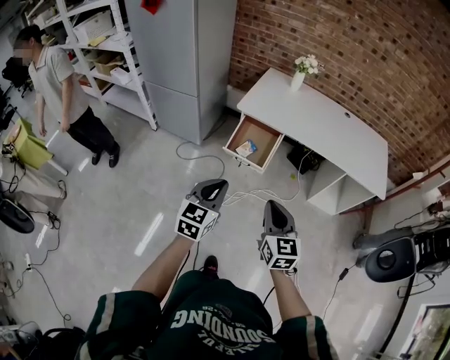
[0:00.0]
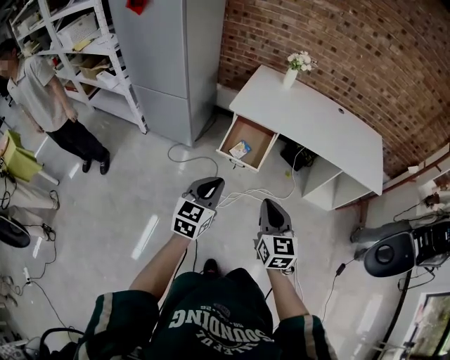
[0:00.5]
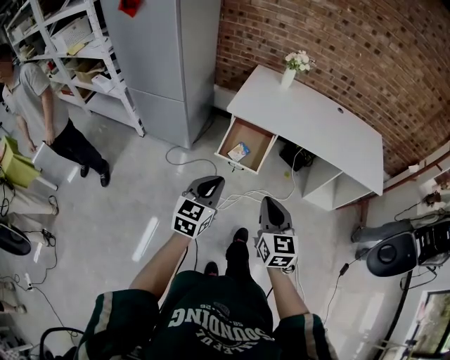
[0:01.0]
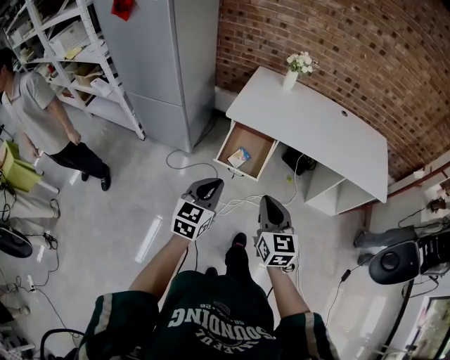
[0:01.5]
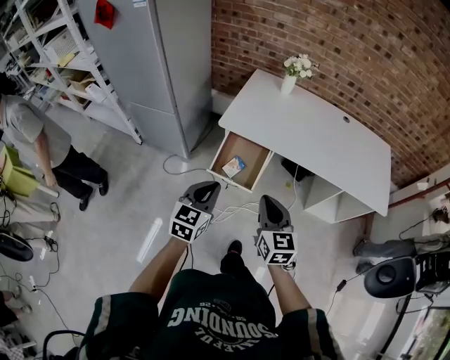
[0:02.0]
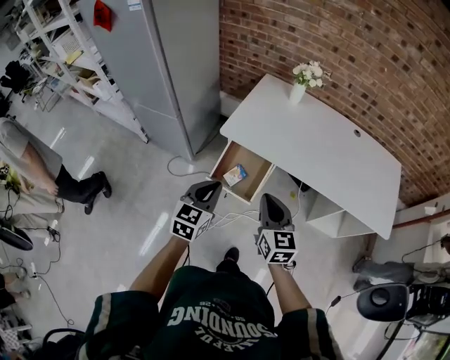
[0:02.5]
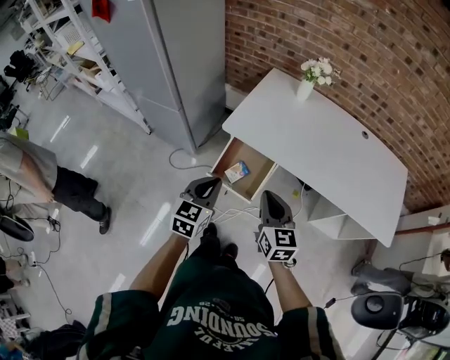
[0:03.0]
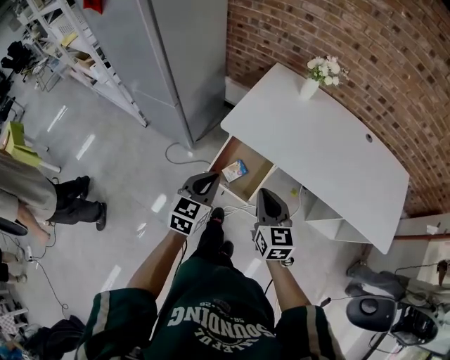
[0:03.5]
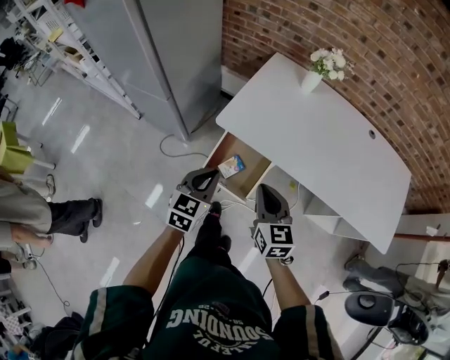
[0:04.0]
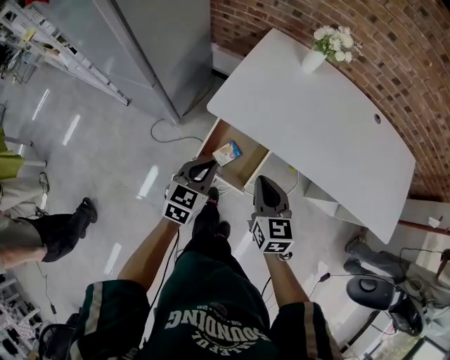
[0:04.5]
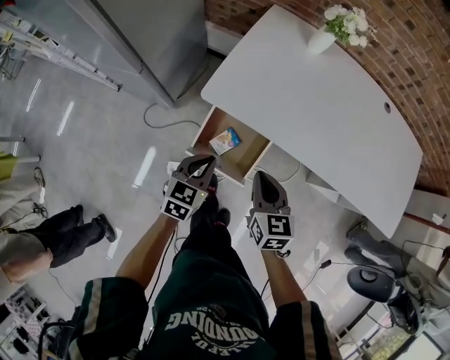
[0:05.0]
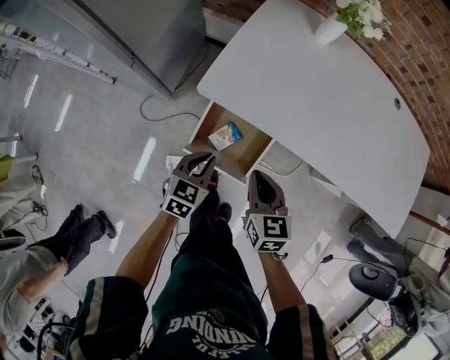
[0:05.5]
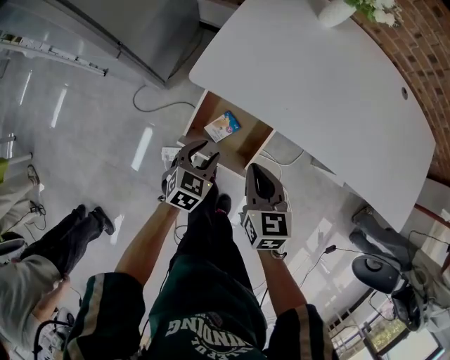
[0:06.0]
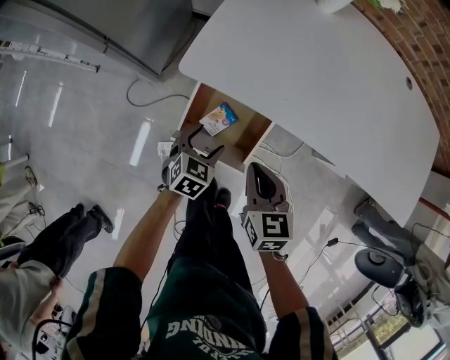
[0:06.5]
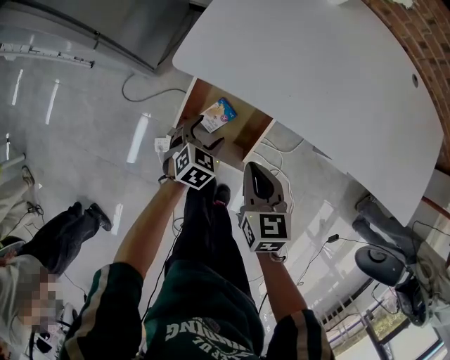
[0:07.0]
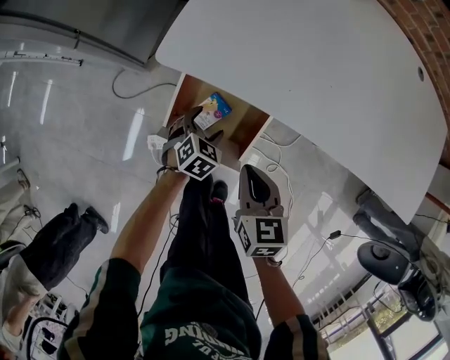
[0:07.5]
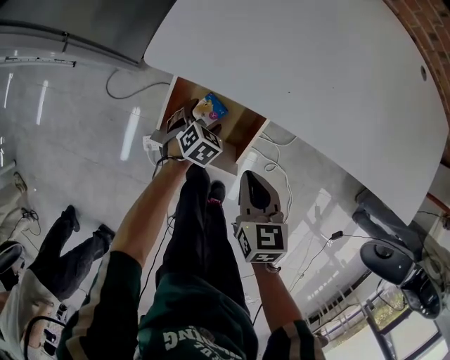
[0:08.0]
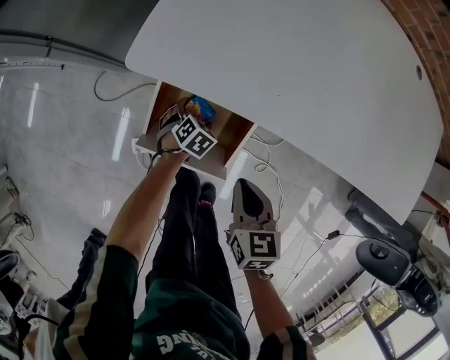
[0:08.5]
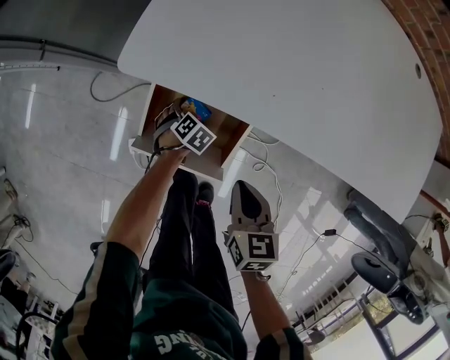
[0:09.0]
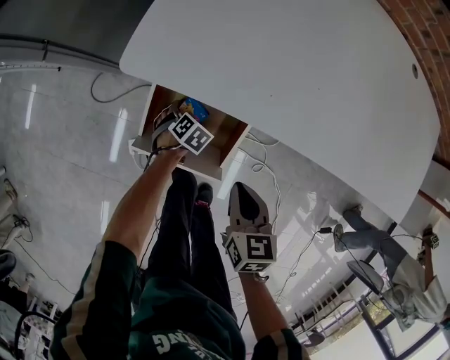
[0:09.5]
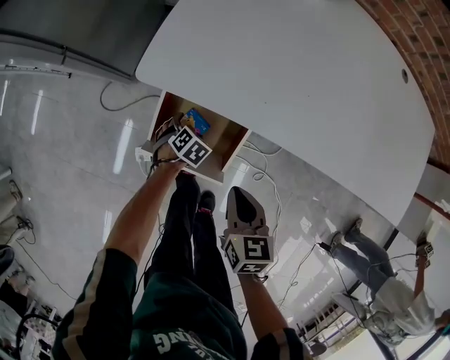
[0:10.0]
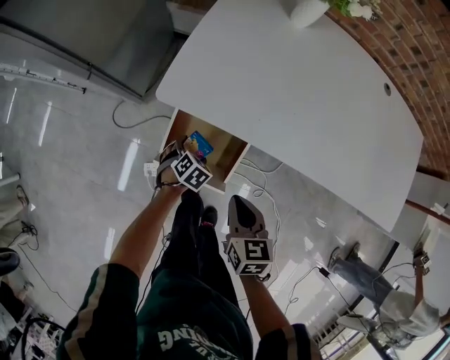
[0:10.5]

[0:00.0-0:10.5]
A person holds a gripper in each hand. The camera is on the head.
0:00.0 to 0:02.0: Both grippers move forward, roughly 20 cm.
0:02.0 to 0:04.0: The right gripper heads forward, covering about 20 cm. Meanwhile the left gripper shifts about 20 cm forward and downward.
0:04.0 to 0:06.5: The grippers both shift downward by approximately 25 cm. The left gripper turns by about 30 degrees, and opens.
0:06.5 to 0:08.5: The left gripper heads downward, covering about 20 cm, and rotates approximately 20 degrees. The right gripper goes some 10 cm downward.
0:08.5 to 0:10.5: Both grippers travel together upward, approximately 10 cm.

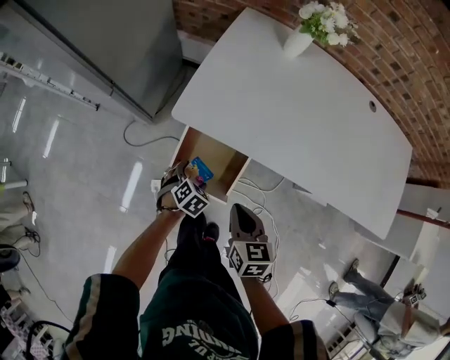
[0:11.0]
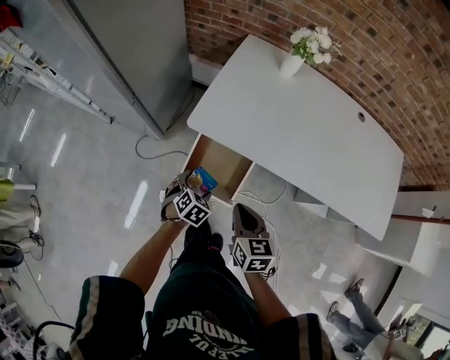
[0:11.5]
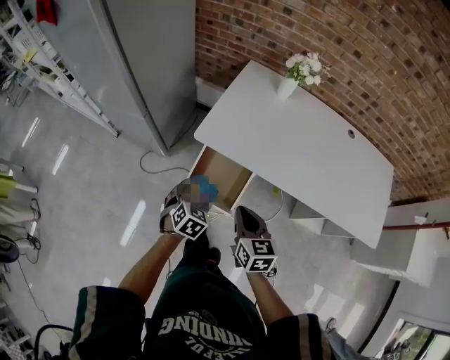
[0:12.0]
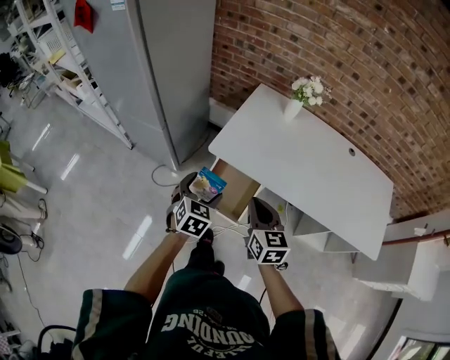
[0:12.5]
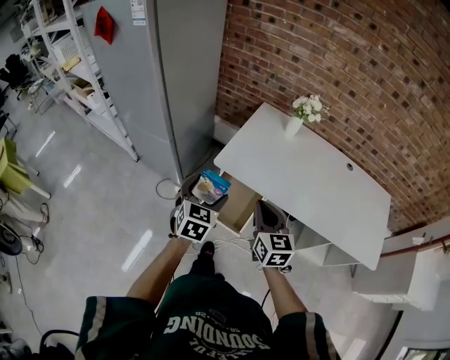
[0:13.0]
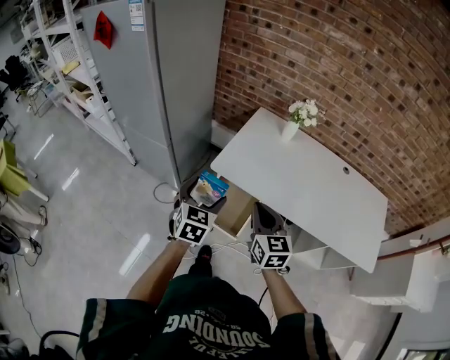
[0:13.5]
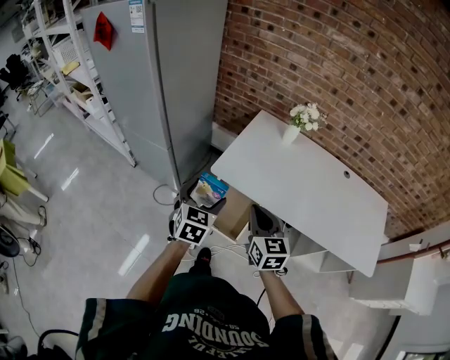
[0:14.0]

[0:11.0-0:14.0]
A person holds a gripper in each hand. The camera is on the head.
0:11.0 to 0:12.5: The left gripper heads upward, covering about 30 cm, and angles its fingers upward, by approximately 30 degrees. Meanwhile the right gripper heads upward, covering approximately 15 cm, and swivels about 20 degrees.
0:12.5 to 0:14.0: The left gripper travels upward by roughly 10 cm.

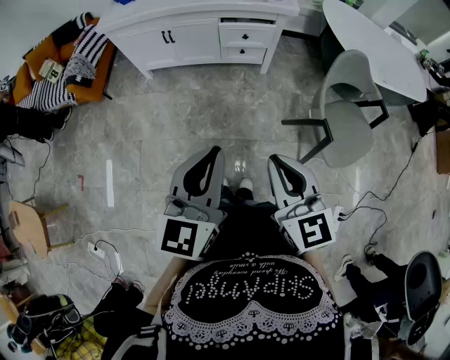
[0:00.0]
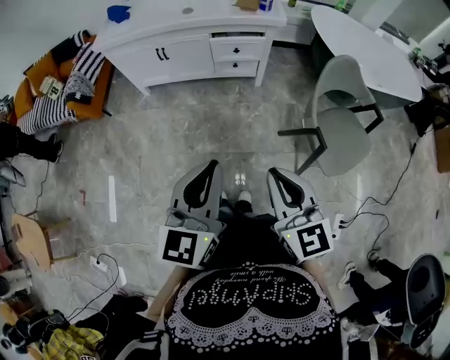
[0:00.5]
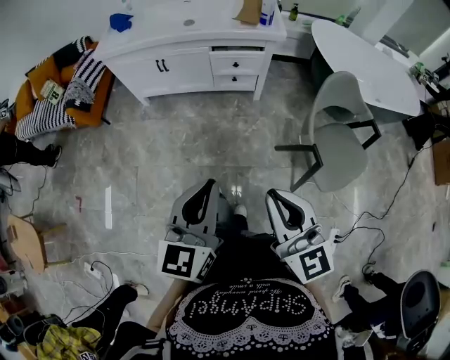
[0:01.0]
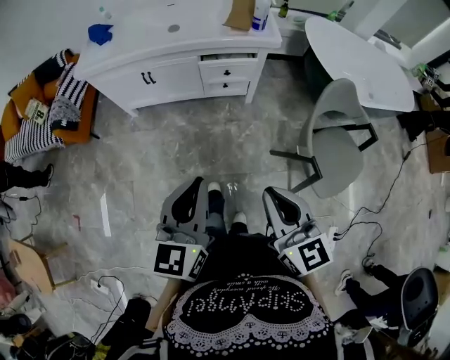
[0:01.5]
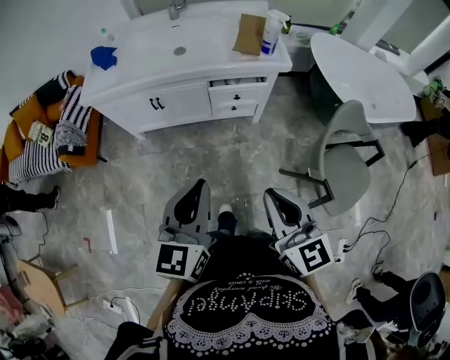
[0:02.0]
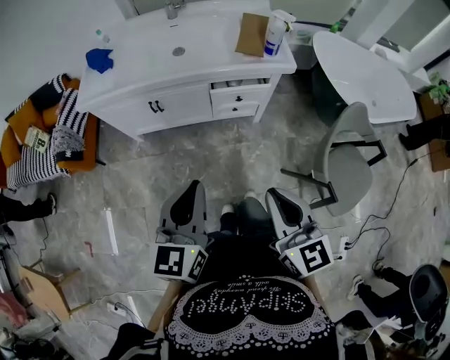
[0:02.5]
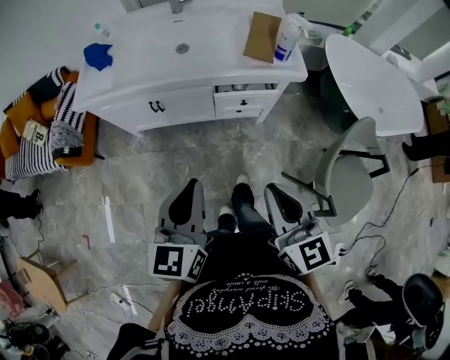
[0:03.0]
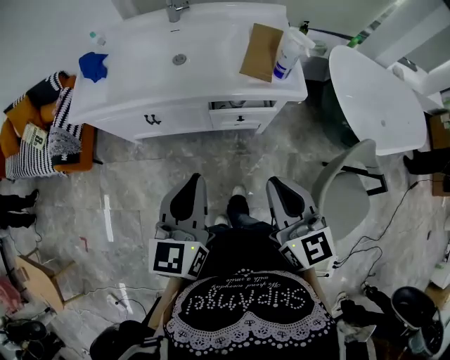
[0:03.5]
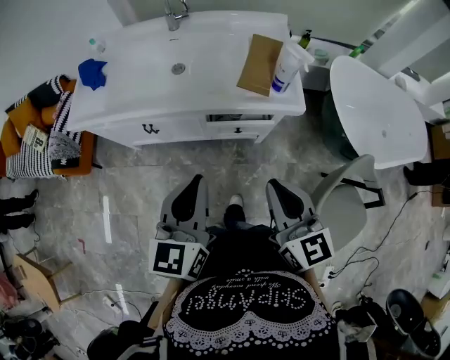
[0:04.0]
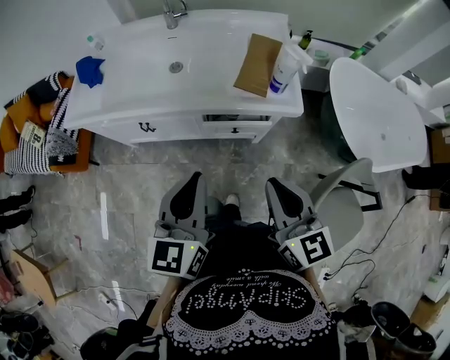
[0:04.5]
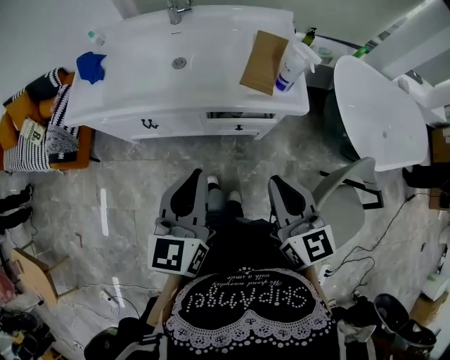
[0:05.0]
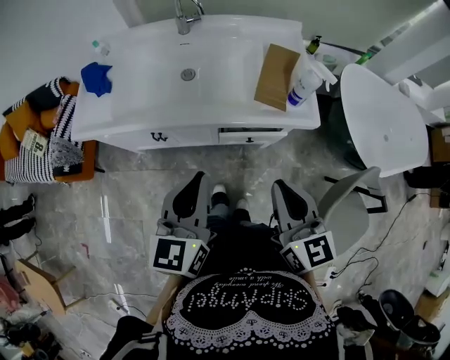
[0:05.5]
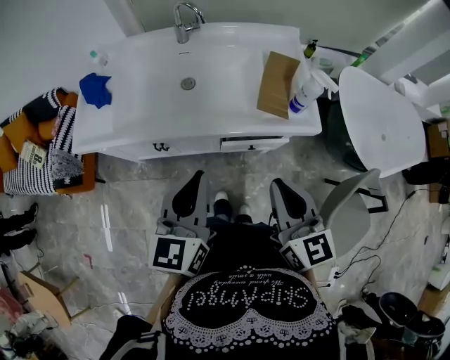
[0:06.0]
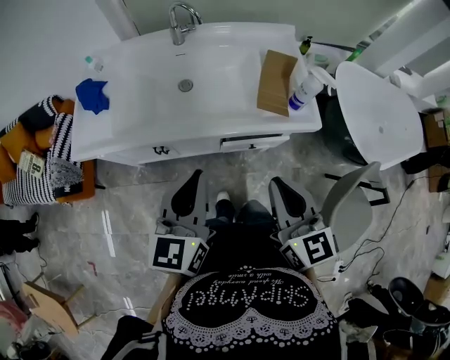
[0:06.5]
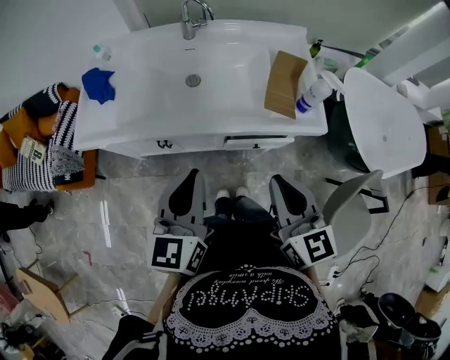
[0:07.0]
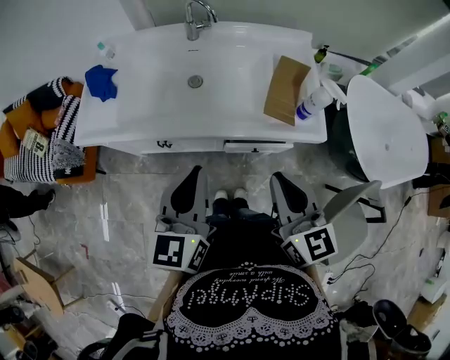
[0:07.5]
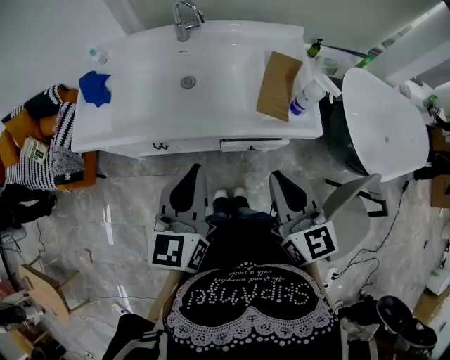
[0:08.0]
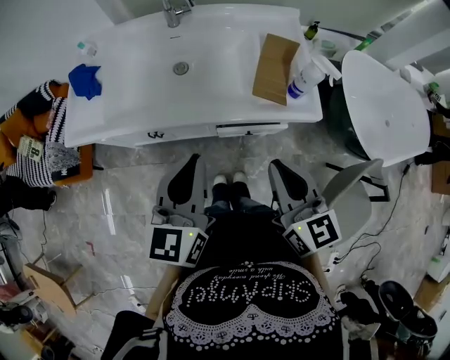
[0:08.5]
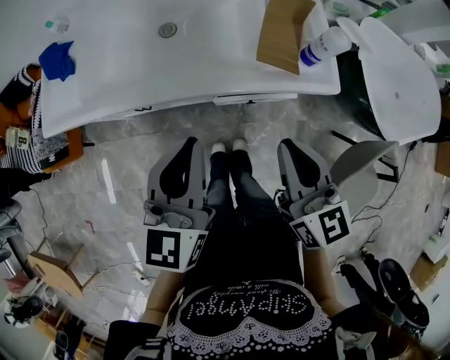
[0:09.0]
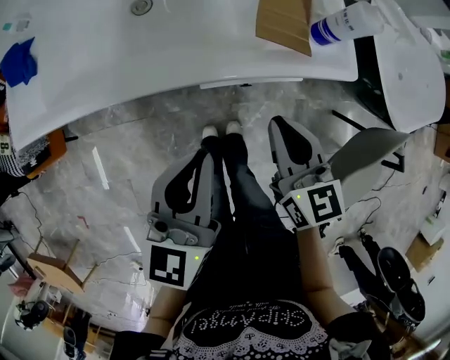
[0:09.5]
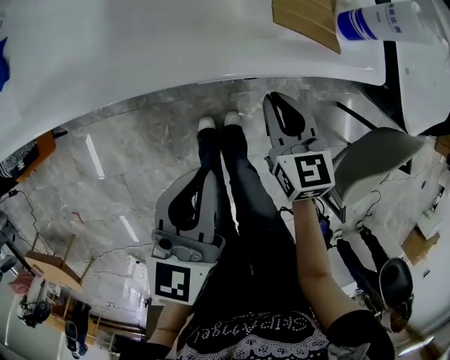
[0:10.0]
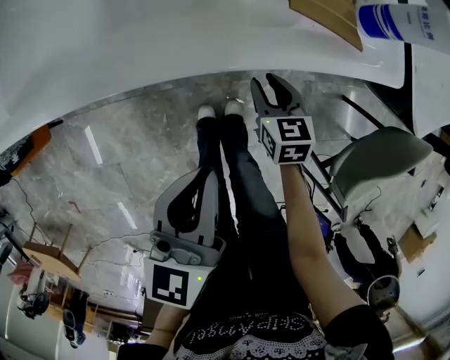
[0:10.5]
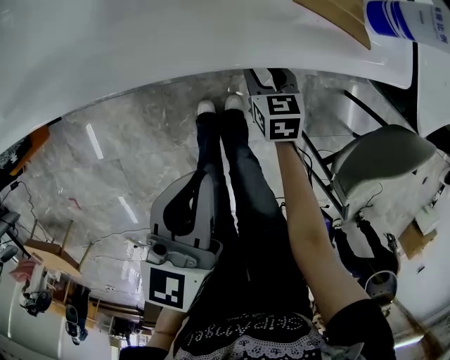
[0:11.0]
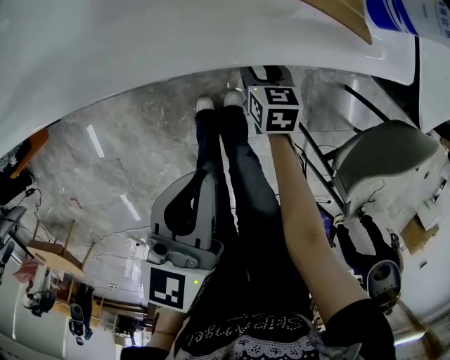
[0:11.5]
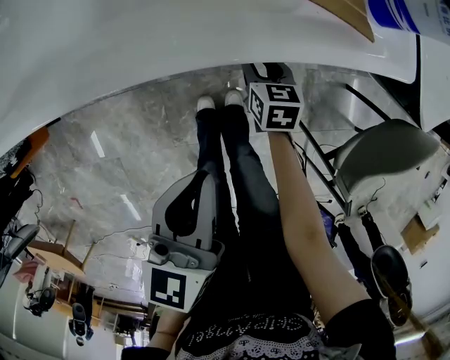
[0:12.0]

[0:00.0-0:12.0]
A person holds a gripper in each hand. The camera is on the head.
0:00.0 to 0:02.0: Both grippers travel together forward, roughly 20 cm.
0:02.0 to 0:04.0: The two grippers go some 25 cm forward.
0:04.0 to 0:06.0: Both grippers travel together forward and to the left, approximately 10 cm.
0:06.0 to 0:08.0: The grippers make only small movements.
0:08.0 to 0:10.0: The right gripper is displaced downward by roughly 30 cm, and rotates approximately 20 degrees. Meanwhile the left gripper heads downward, covering approximately 20 cm.
0:10.0 to 0:12.0: The right gripper shifts approximately 20 cm downward, and opens up.

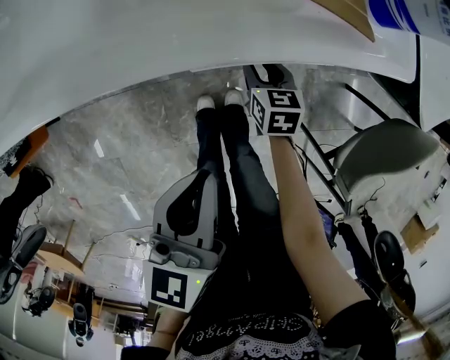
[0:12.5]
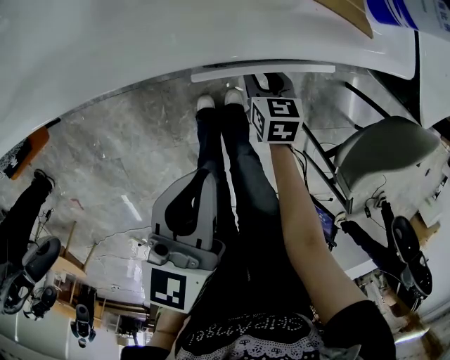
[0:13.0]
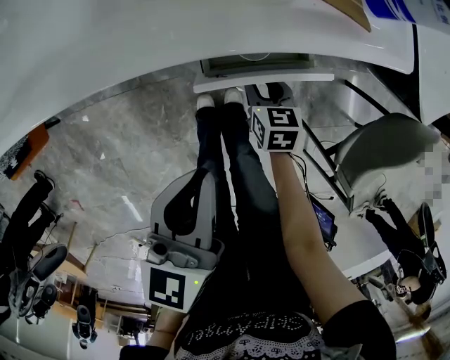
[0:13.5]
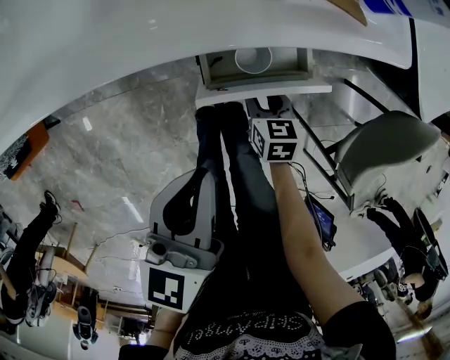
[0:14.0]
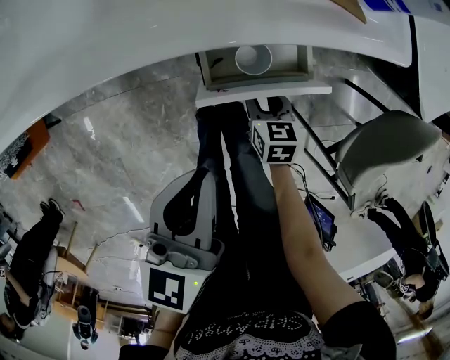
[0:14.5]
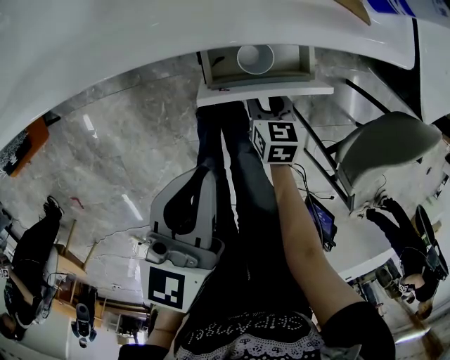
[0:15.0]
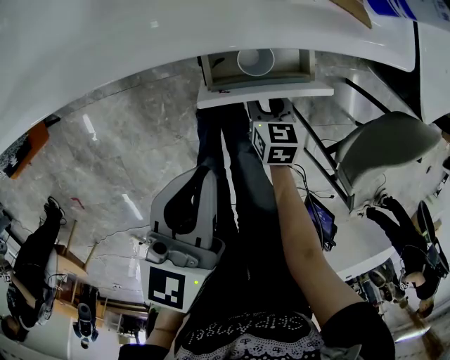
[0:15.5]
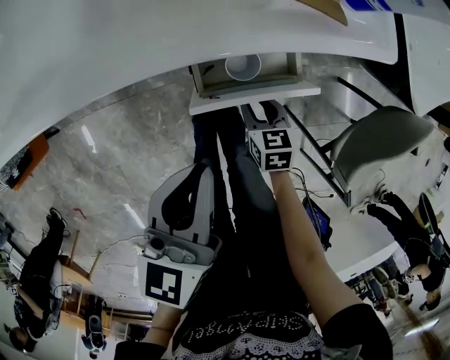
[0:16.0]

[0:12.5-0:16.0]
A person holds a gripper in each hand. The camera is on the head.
0:12.5 to 0:14.5: The right gripper is displaced backward by approximately 10 cm.
0:14.5 to 0:16.0: The grippers make only small movements.
